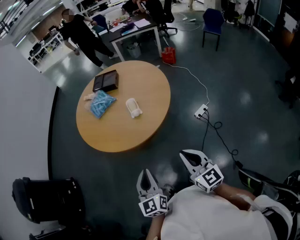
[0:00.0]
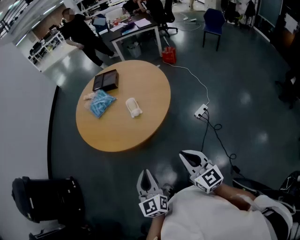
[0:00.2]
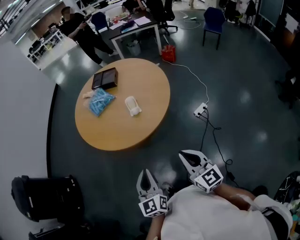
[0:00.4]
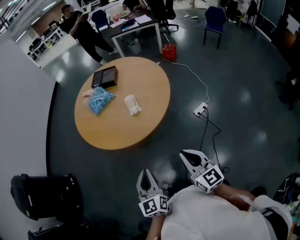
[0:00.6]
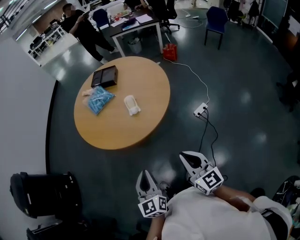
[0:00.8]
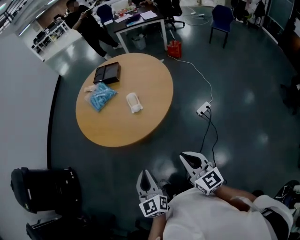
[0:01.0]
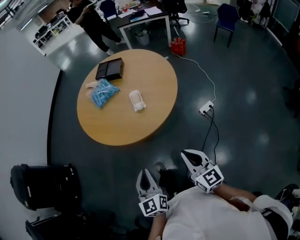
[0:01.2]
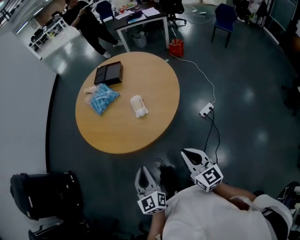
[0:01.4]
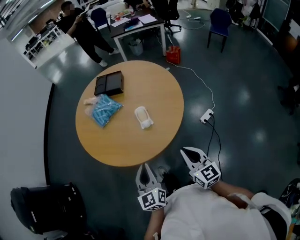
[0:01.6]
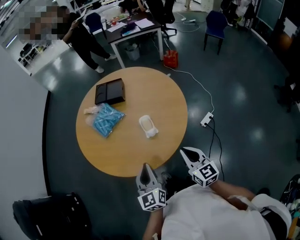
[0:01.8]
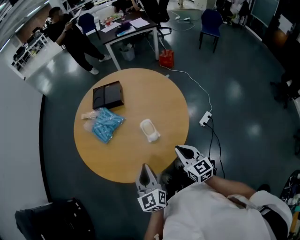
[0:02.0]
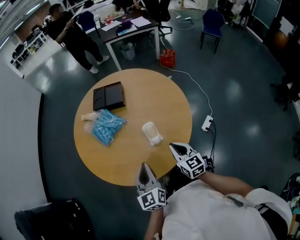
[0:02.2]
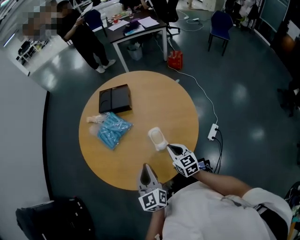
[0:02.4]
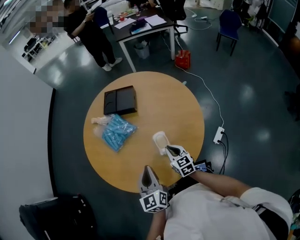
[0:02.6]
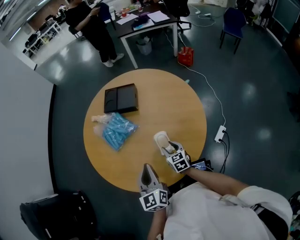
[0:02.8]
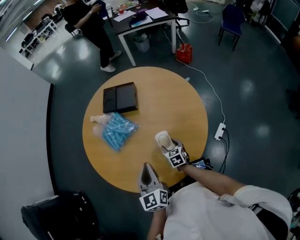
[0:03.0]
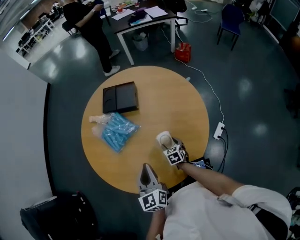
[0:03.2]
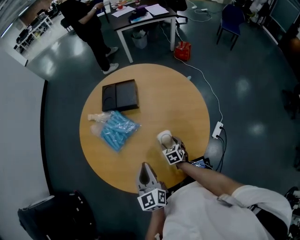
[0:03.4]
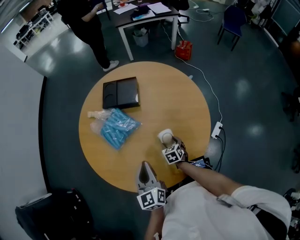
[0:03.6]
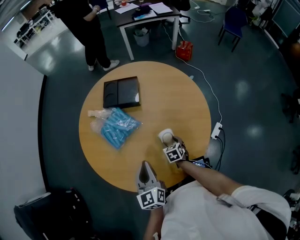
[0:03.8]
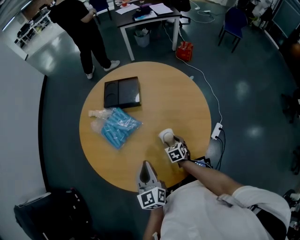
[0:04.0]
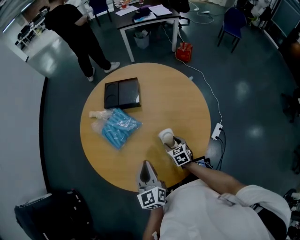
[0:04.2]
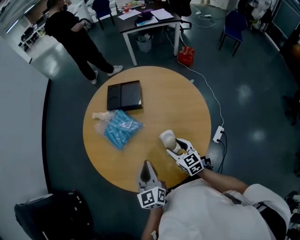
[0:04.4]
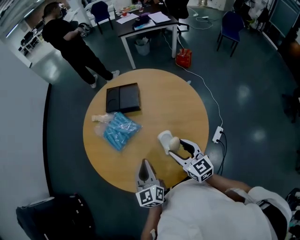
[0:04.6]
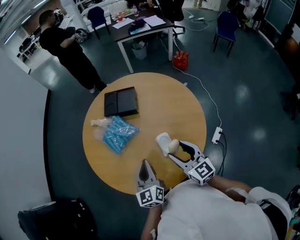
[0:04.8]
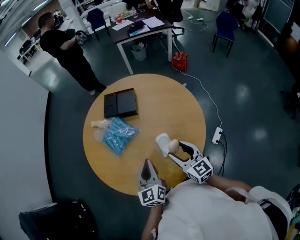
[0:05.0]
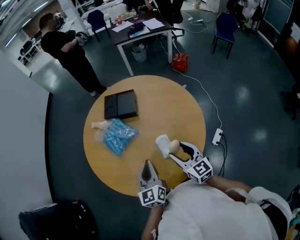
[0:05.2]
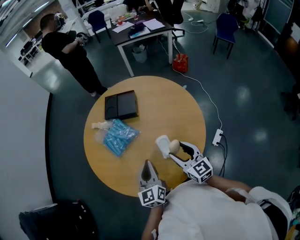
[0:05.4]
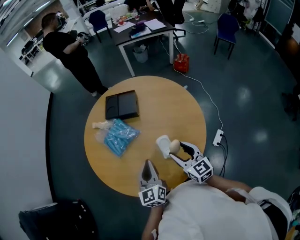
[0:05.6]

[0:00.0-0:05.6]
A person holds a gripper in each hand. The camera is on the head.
0:00.0 to 0:01.4: Both grippers move forward, some 10 cm.
0:01.4 to 0:02.8: The right gripper goes roughly 40 cm forward and downward, rotates about 30 degrees, and opens up; the left gripper moves forward, approximately 35 cm.
0:02.8 to 0:04.2: The left gripper ends up about 5 cm from where it was.
0:04.2 to 0:05.6: The right gripper moves upward, some 20 cm, and tips its fingers upward by approximately 30 degrees.

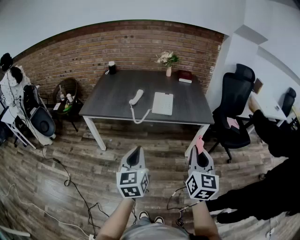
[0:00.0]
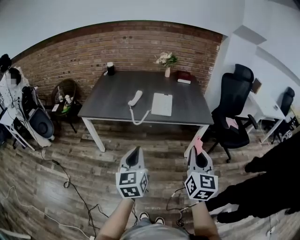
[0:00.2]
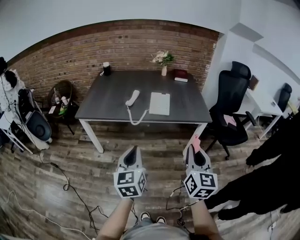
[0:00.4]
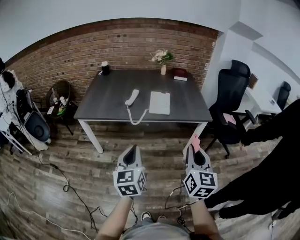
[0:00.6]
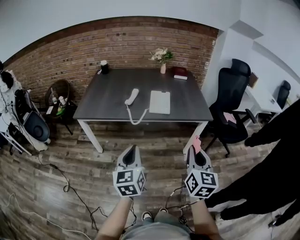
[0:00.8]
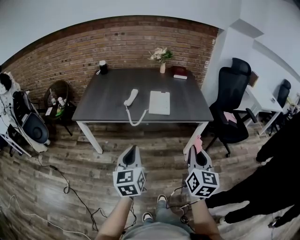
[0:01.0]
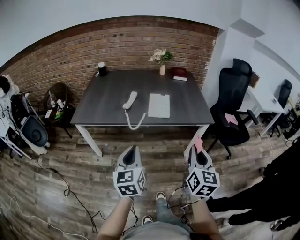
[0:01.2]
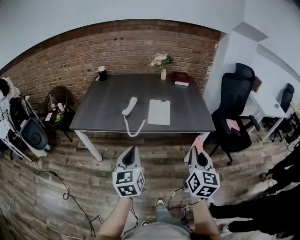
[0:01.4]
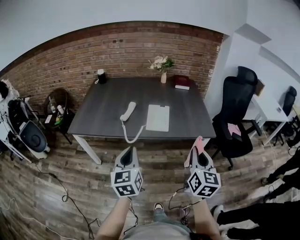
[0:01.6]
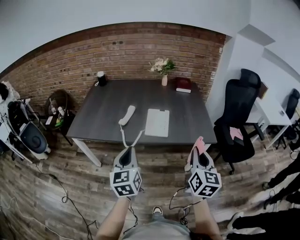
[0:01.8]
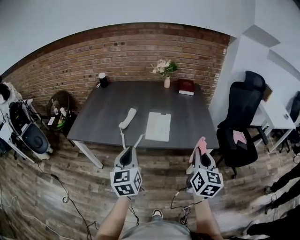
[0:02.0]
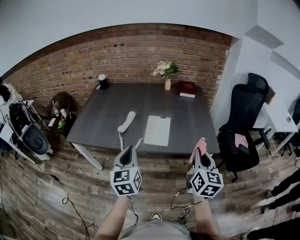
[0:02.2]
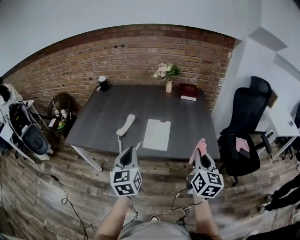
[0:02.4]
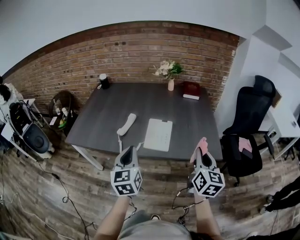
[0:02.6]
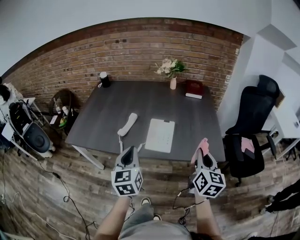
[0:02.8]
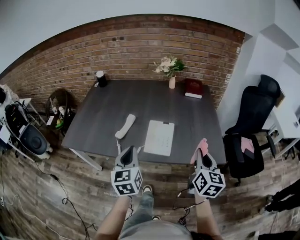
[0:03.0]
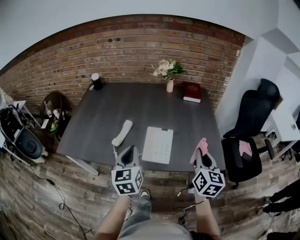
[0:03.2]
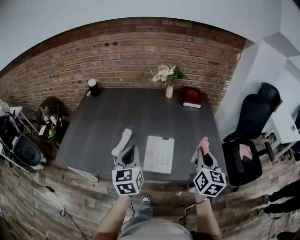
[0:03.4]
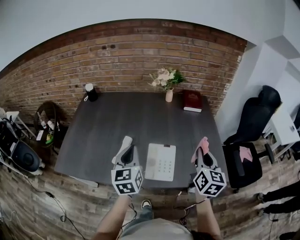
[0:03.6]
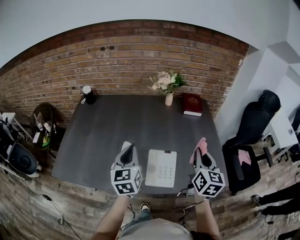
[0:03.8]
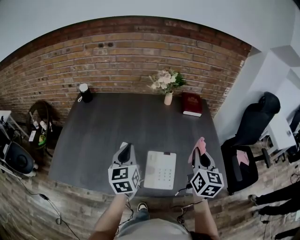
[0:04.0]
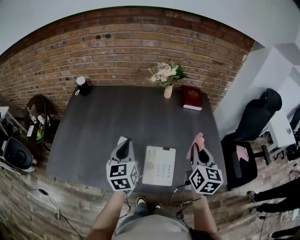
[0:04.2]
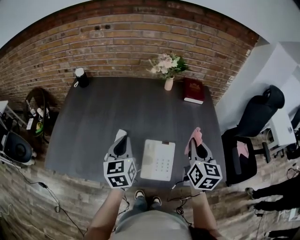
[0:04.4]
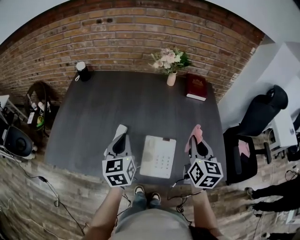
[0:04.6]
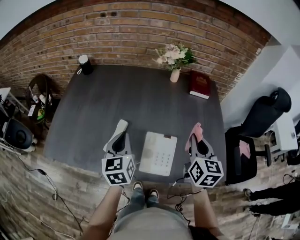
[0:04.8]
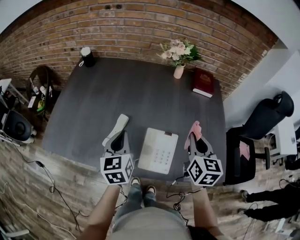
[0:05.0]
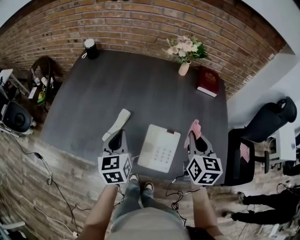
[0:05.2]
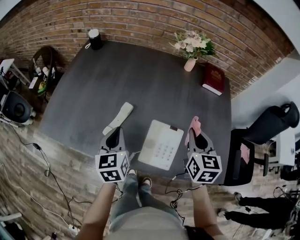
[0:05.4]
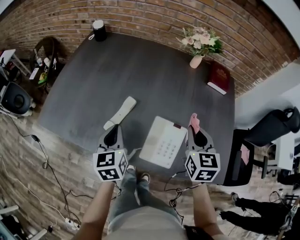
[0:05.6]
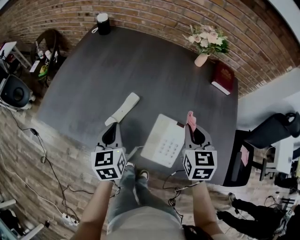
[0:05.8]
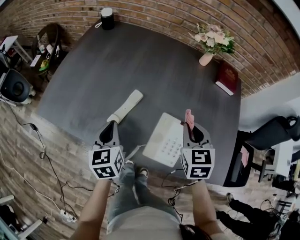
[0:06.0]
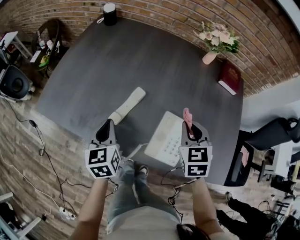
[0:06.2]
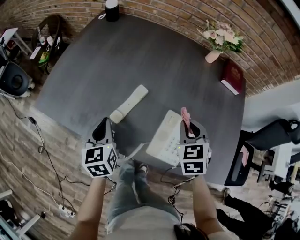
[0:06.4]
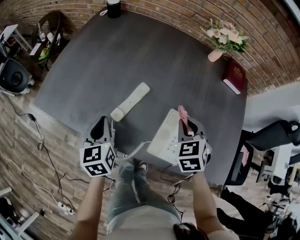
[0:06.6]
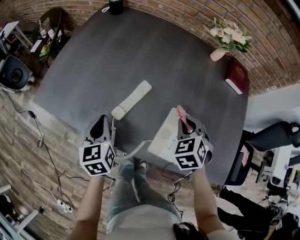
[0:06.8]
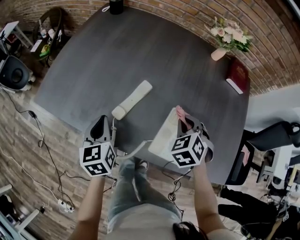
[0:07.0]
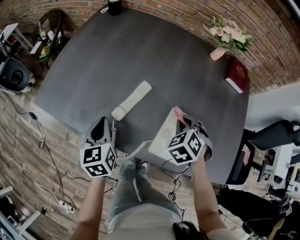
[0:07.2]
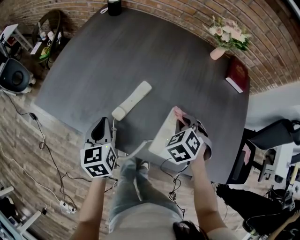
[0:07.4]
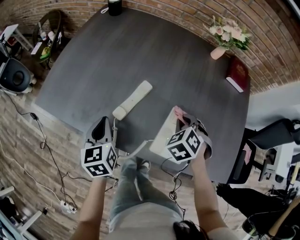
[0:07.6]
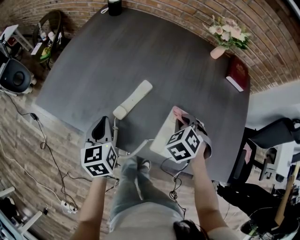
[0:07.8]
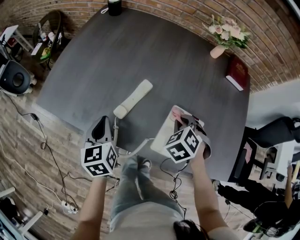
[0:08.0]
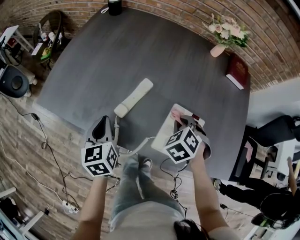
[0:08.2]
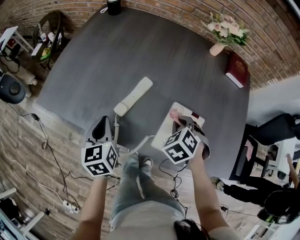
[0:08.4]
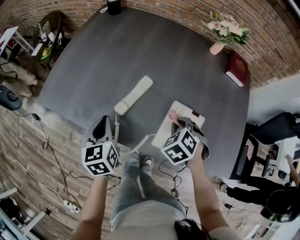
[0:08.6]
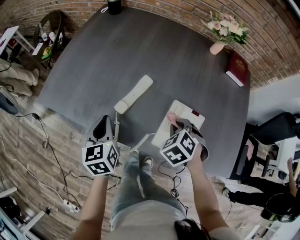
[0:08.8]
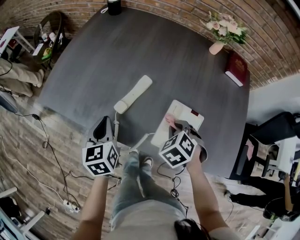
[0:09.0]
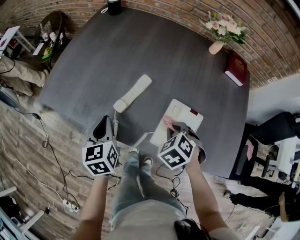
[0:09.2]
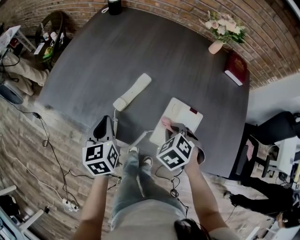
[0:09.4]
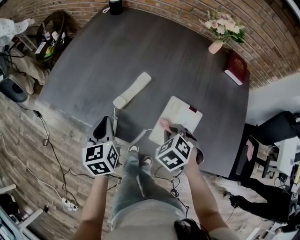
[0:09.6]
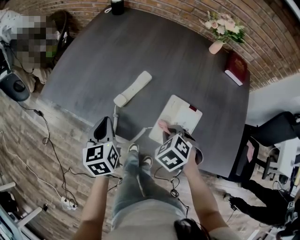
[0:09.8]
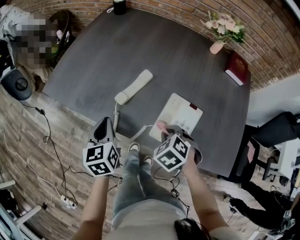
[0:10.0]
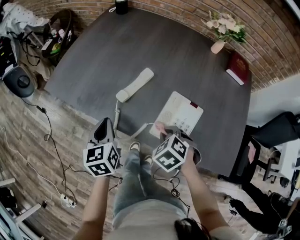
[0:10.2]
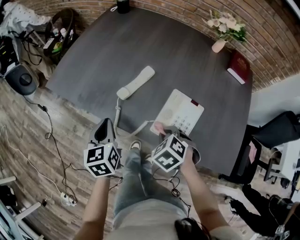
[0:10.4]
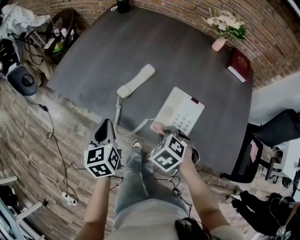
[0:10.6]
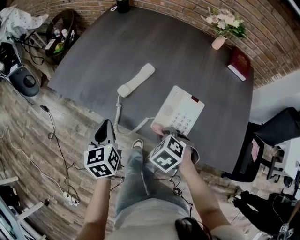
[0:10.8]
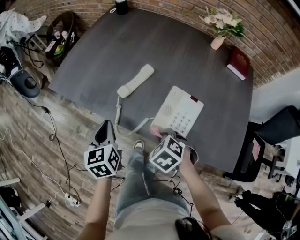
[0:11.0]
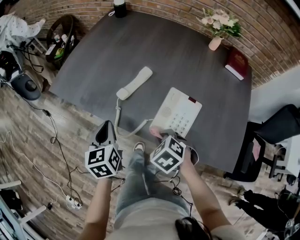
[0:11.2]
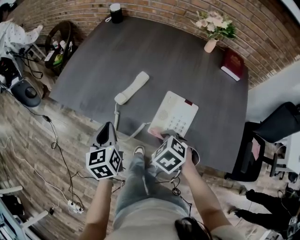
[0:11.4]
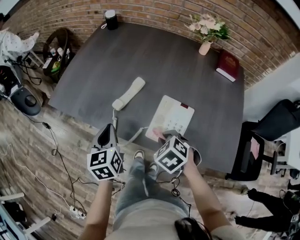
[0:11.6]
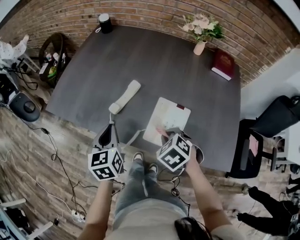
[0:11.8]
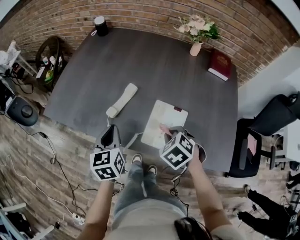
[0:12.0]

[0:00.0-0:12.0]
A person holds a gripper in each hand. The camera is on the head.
0:00.0 to 0:01.6: Both grippers move forward, some 15 cm.
0:01.6 to 0:03.0: Both grippers move forward, roughly 20 cm.
0:03.0 to 0:04.4: Both grippers travel together forward, some 25 cm.
0:04.4 to 0:06.0: The left gripper goes approximately 15 cm downward and to the left, and rotates some 20 degrees, while the right gripper moves to the left, downward and forward, some 15 cm, and swivels approximately 40 degrees.
0:06.0 to 0:07.6: The left gripper moves to the left, roughly 5 cm. The right gripper heads downward, covering roughly 10 cm, and rotates some 40 degrees.
0:07.6 to 0:09.0: The right gripper travels backward by approximately 5 cm.
0:09.0 to 0:10.4: The two grippers go some 10 cm backward.
0:10.4 to 0:12.0: The left gripper moves to the right, some 10 cm. Meanwhile the right gripper travels to the right and upward by some 10 cm.

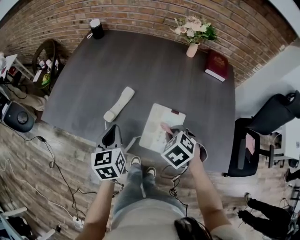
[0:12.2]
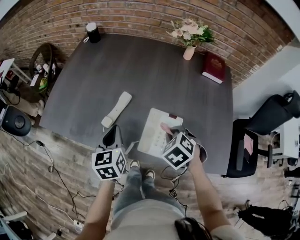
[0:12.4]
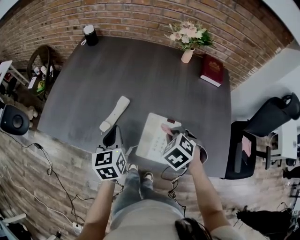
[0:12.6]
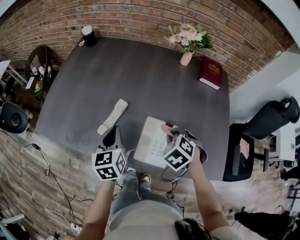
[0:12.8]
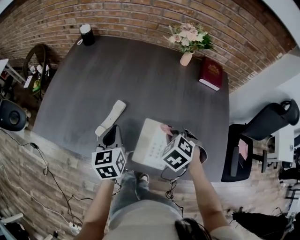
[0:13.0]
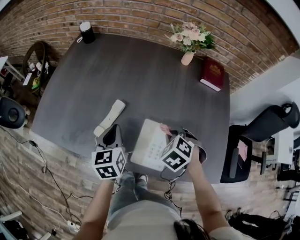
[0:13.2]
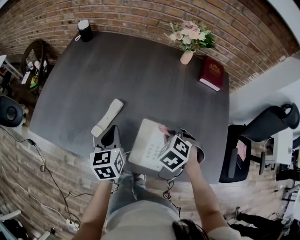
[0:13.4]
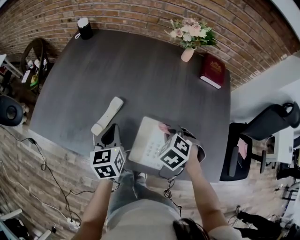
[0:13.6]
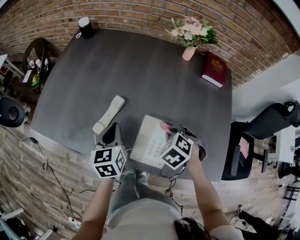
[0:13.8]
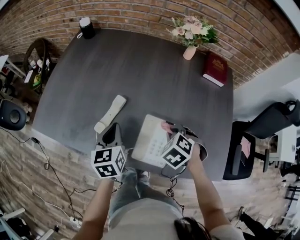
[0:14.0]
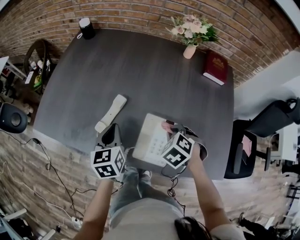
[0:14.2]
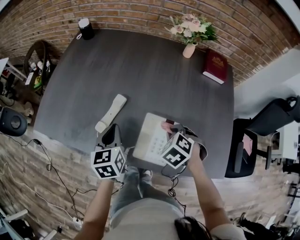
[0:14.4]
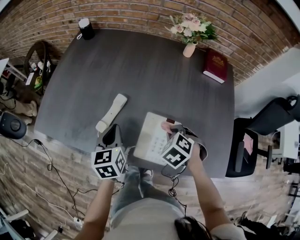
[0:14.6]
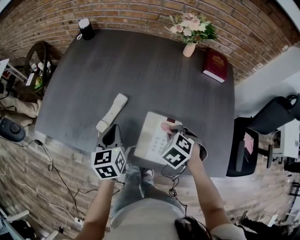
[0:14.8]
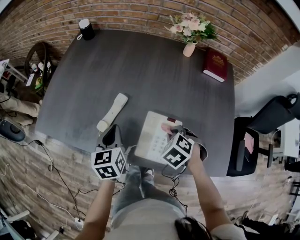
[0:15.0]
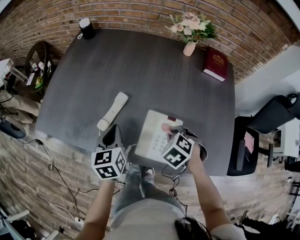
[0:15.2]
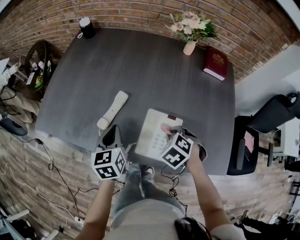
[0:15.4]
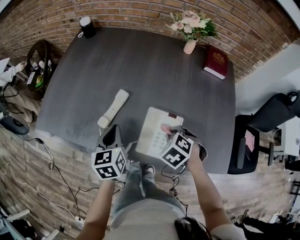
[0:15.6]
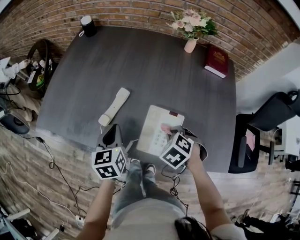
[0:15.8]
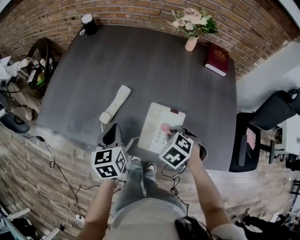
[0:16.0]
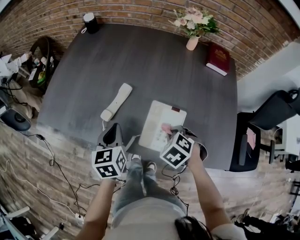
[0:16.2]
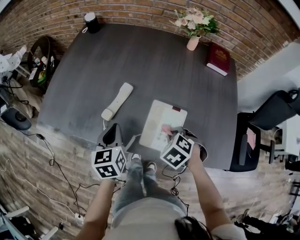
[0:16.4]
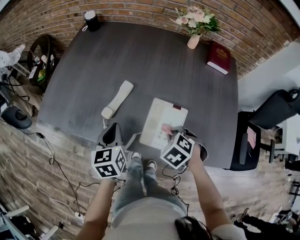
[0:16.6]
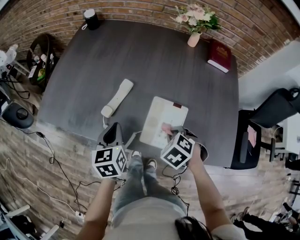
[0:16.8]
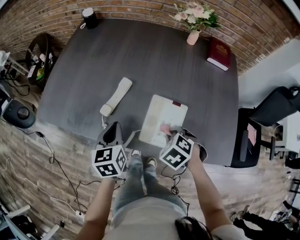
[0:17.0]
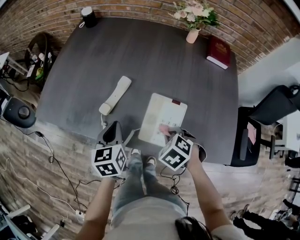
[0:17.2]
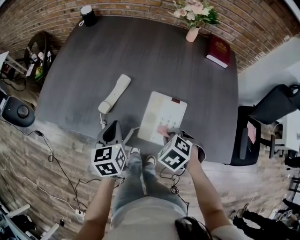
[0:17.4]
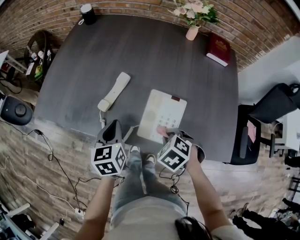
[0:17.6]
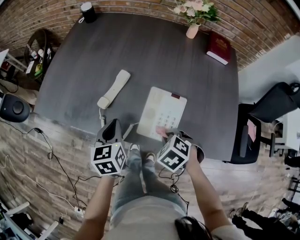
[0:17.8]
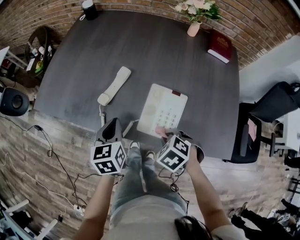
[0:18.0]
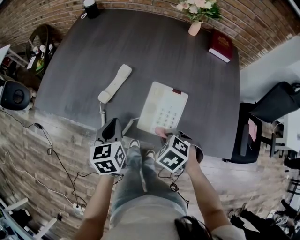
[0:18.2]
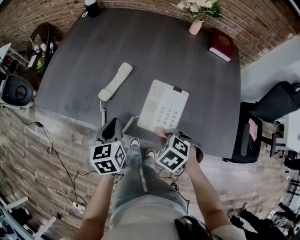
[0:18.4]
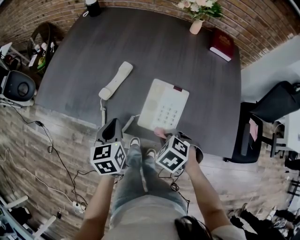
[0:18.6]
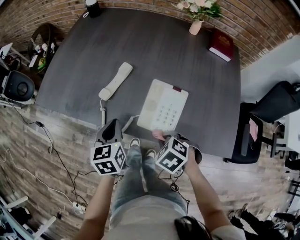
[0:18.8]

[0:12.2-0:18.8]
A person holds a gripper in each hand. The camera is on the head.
0:12.2 to 0:13.8: The two grippers go approximately 5 cm forward.
0:13.8 to 0:15.4: The grippers make only small movements.
0:15.4 to 0:17.2: The right gripper moves backward, roughly 5 cm.
0:17.2 to 0:18.8: The right gripper moves approximately 10 cm; the left gripper shifts by approximately 5 cm.
